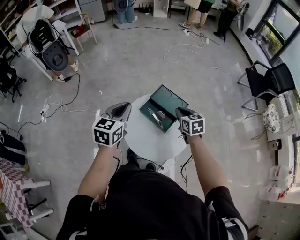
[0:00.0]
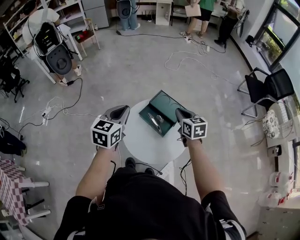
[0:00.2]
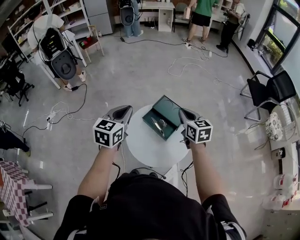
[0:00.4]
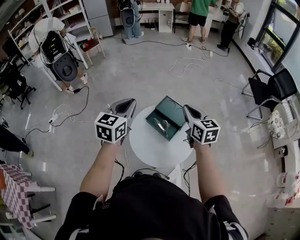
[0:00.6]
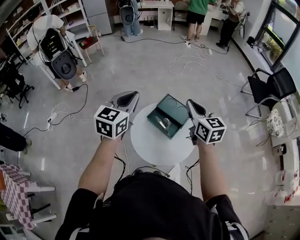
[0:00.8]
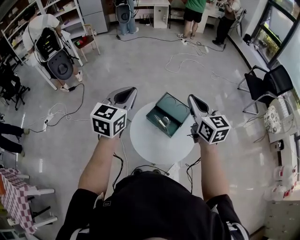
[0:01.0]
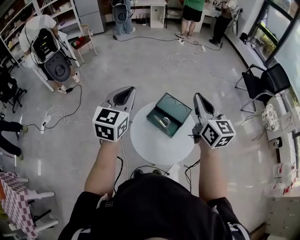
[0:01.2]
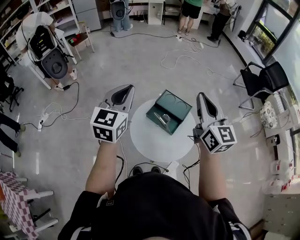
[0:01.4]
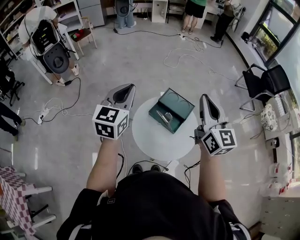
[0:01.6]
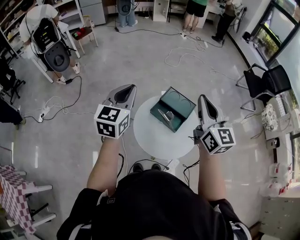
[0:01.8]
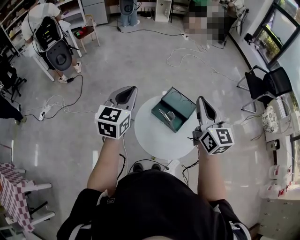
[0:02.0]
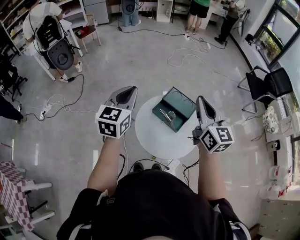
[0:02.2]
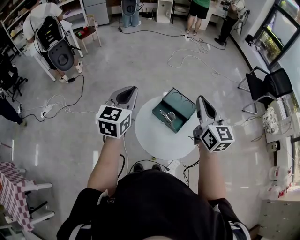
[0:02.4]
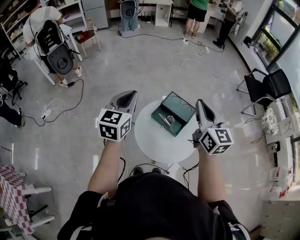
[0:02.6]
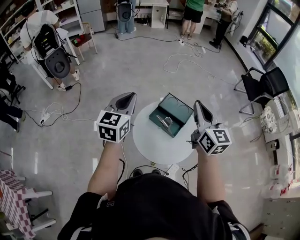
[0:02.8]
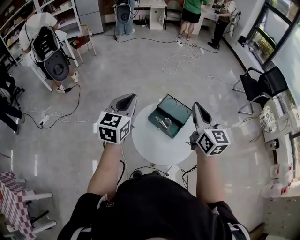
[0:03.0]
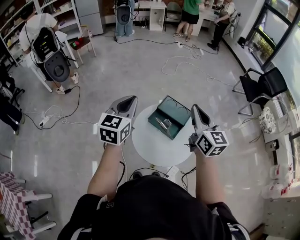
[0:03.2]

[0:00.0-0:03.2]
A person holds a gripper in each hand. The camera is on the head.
0:00.0 to 0:01.6: The left gripper travels upward by about 10 cm. Meanwhile the right gripper travels upward by roughly 30 cm, and tips its fingers upward by some 40 degrees.
0:01.6 to 0:03.2: The right gripper shifts about 5 cm downward.

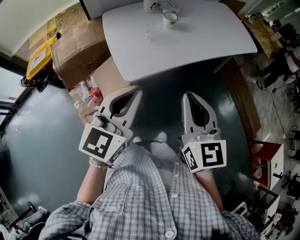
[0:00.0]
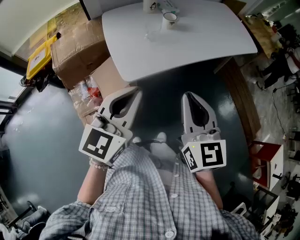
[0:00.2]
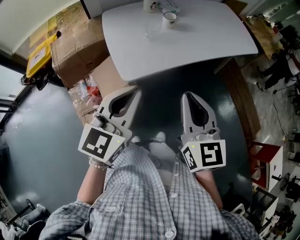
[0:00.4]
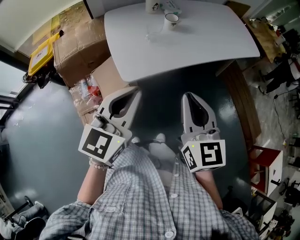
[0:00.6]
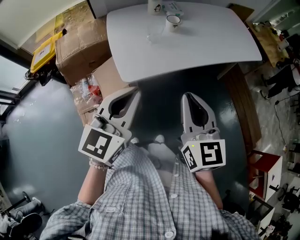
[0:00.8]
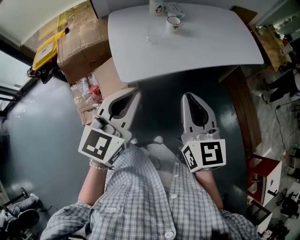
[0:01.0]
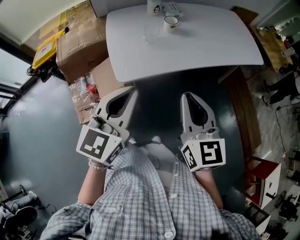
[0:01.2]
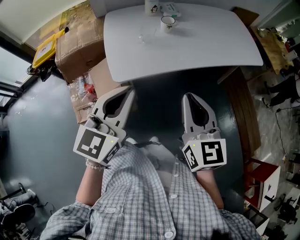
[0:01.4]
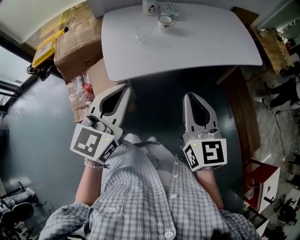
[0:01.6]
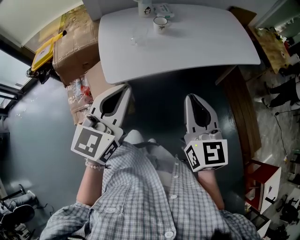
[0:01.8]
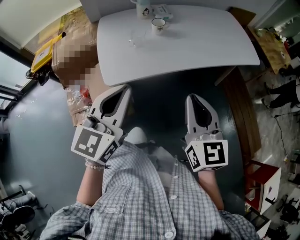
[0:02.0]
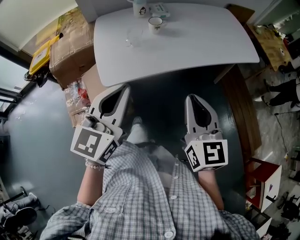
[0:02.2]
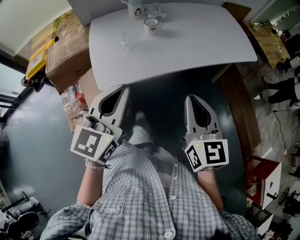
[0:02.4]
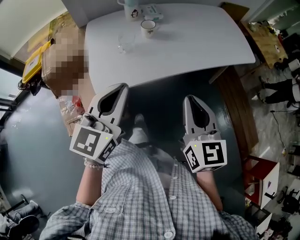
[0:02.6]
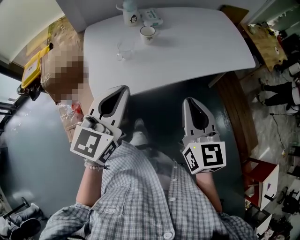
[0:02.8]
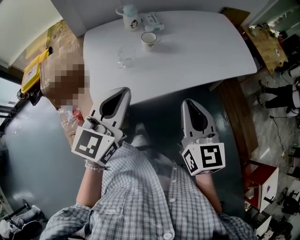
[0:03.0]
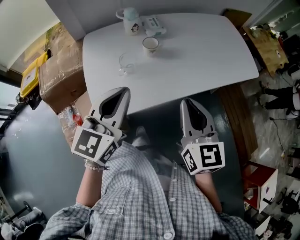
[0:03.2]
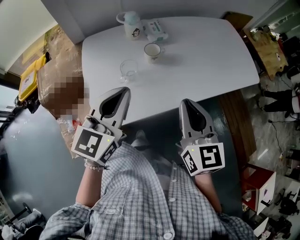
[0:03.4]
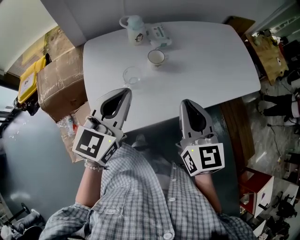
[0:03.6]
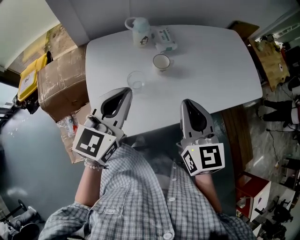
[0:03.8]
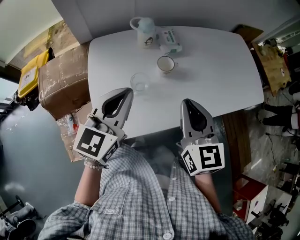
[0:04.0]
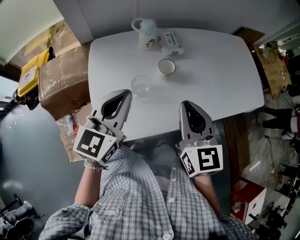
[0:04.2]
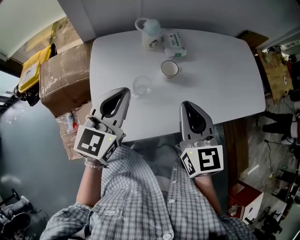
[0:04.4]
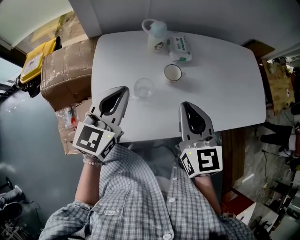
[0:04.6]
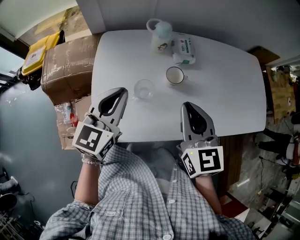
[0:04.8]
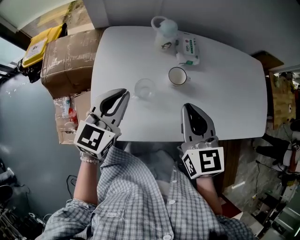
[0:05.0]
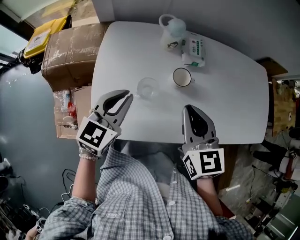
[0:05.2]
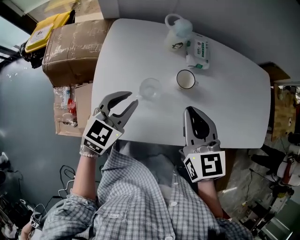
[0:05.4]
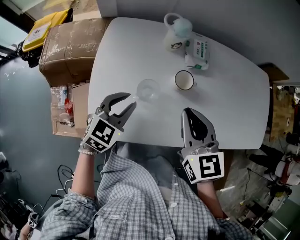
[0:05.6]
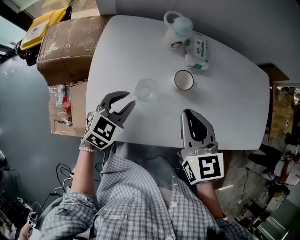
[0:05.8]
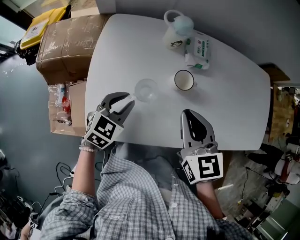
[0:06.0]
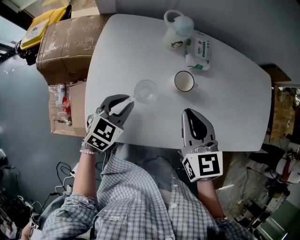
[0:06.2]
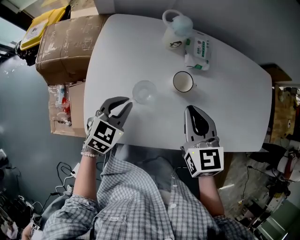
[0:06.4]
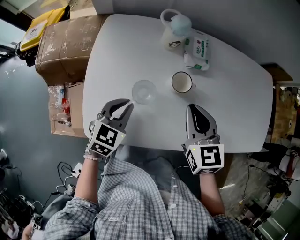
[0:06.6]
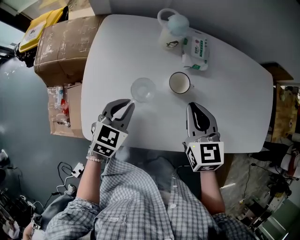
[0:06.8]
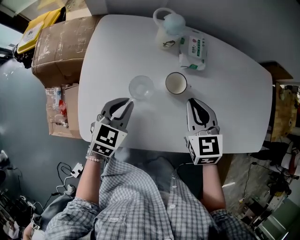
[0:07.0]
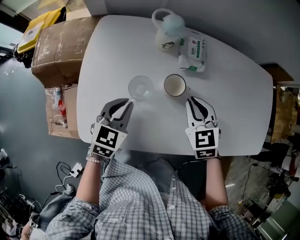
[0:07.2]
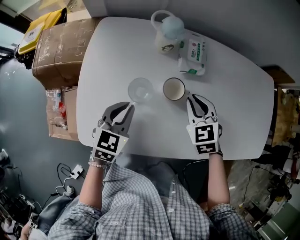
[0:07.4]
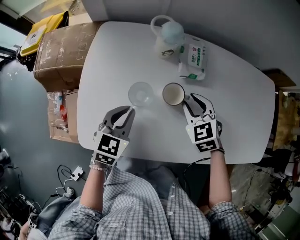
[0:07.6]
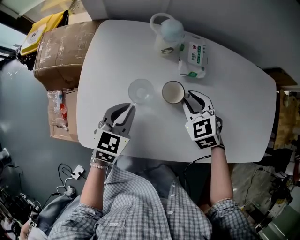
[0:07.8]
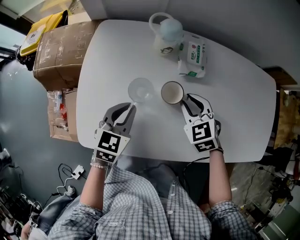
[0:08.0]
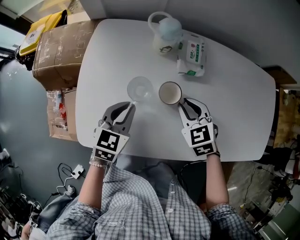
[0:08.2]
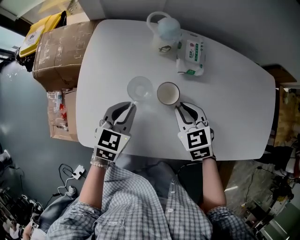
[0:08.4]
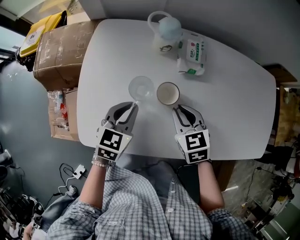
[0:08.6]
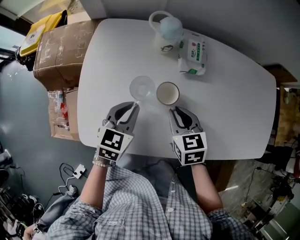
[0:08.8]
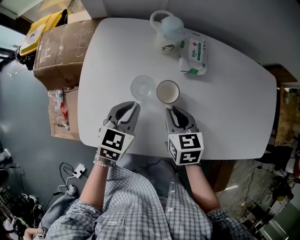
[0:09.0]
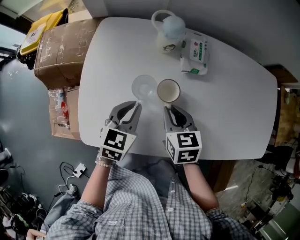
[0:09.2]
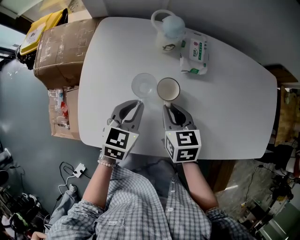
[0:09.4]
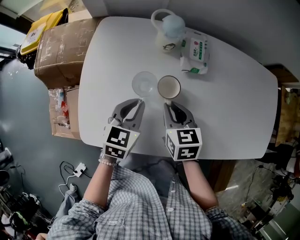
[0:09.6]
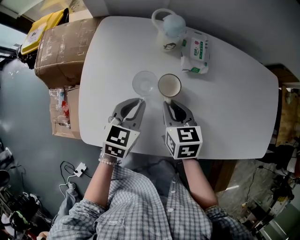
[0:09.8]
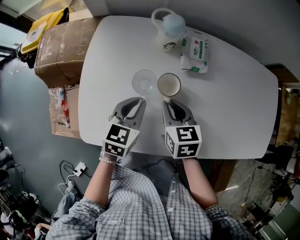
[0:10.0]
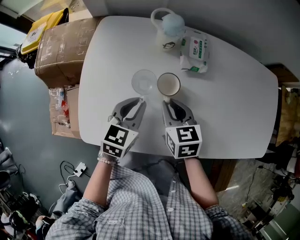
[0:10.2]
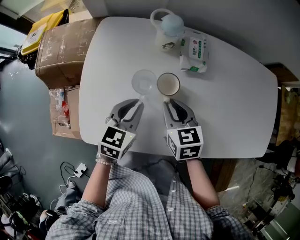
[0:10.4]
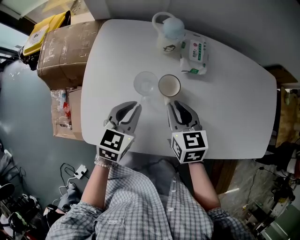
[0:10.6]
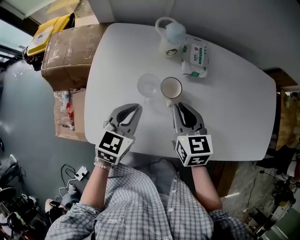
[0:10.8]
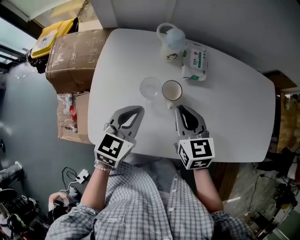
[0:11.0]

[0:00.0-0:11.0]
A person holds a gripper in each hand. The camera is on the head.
0:00.0 to 0:01.6: Both grippers move to the right, some 10 cm.
0:01.6 to 0:03.2: The two grippers go roughly 15 cm forward.
0:03.2 to 0:04.8: The right gripper shifts about 20 cm forward and to the left; the left gripper moves forward, to the left and downward, approximately 15 cm.
0:04.8 to 0:06.2: The right gripper moves downward, about 5 cm; the left gripper is displaced downward by some 15 cm, and turns by some 30 degrees.
0:06.2 to 0:07.8: The left gripper ends up some 5 cm from where it was. Meanwhile the right gripper heads downward, forward and to the right, covering some 15 cm, and turns by about 30 degrees.
0:07.8 to 0:09.4: The right gripper heads backward and to the left, covering approximately 10 cm, and changes its angle by some 40 degrees.
0:09.4 to 0:11.0: The two grippers go some 10 cm upward.

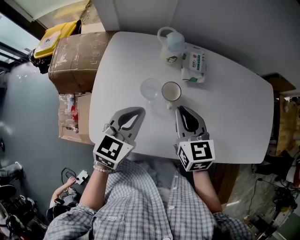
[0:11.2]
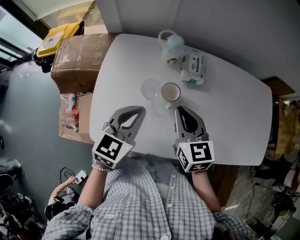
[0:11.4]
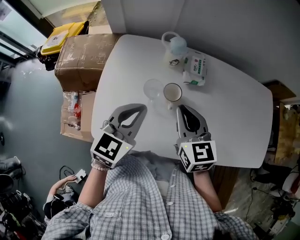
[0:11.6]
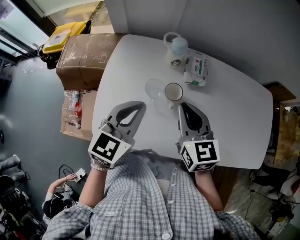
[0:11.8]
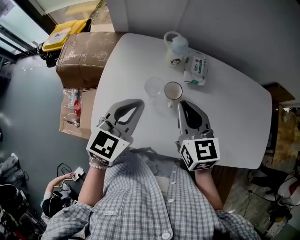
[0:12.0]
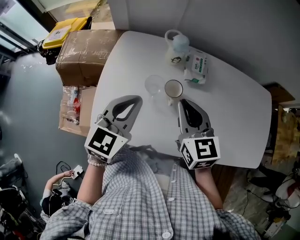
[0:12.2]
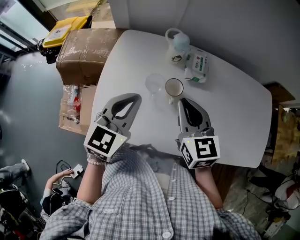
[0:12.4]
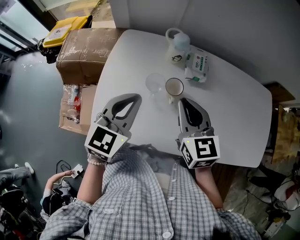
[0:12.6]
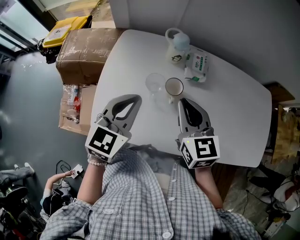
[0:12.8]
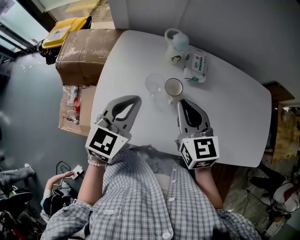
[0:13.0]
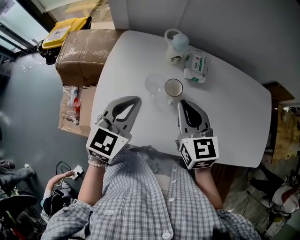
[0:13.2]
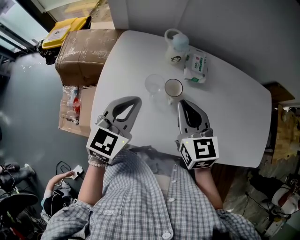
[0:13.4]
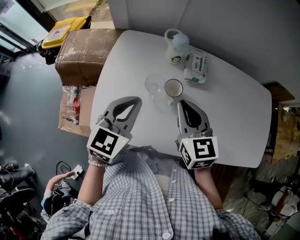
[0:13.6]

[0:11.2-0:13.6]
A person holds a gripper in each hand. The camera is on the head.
0:11.2 to 0:12.4: The two grippers go about 5 cm upward.
0:12.4 to 0:13.6: Neither gripper changes place.

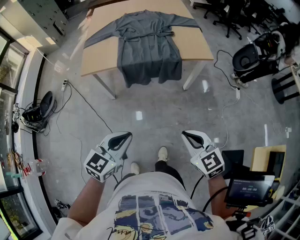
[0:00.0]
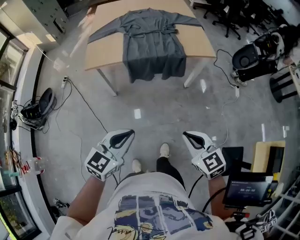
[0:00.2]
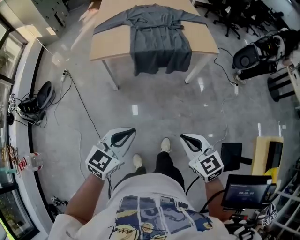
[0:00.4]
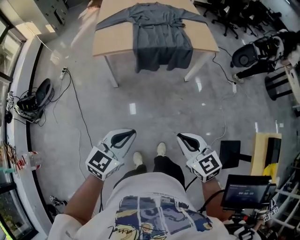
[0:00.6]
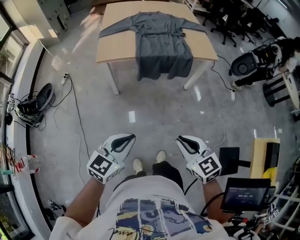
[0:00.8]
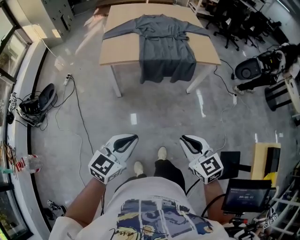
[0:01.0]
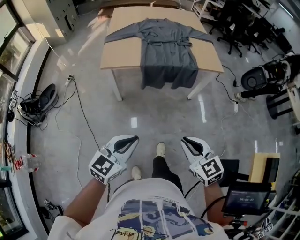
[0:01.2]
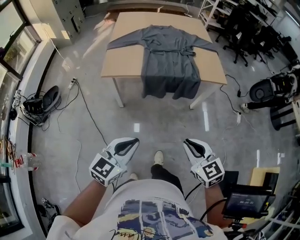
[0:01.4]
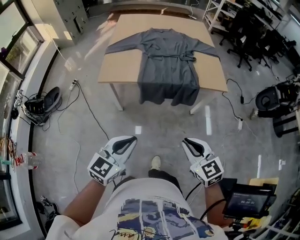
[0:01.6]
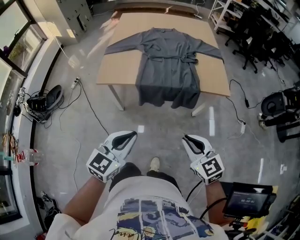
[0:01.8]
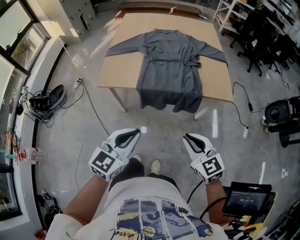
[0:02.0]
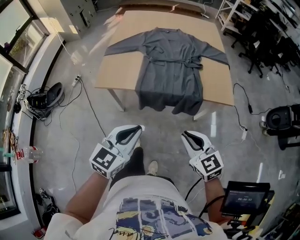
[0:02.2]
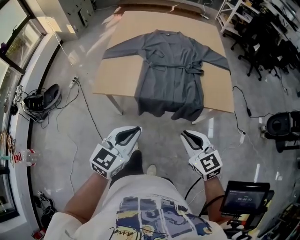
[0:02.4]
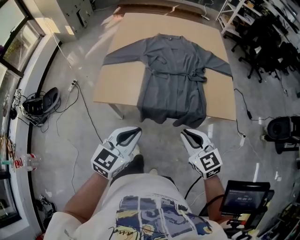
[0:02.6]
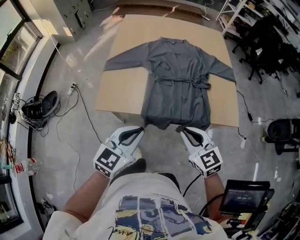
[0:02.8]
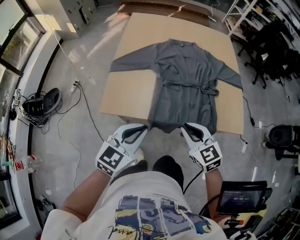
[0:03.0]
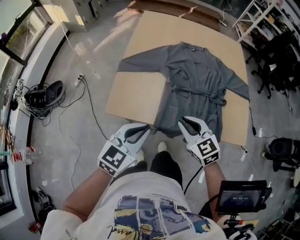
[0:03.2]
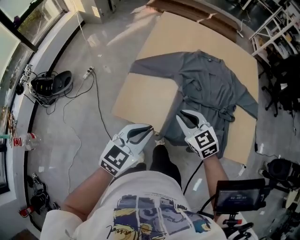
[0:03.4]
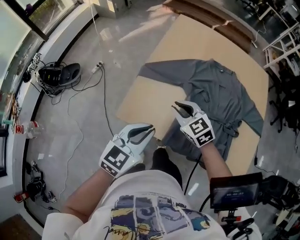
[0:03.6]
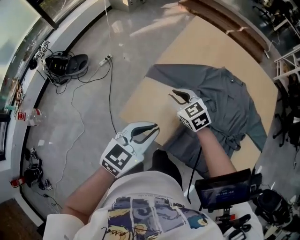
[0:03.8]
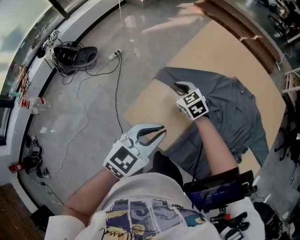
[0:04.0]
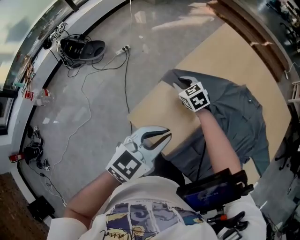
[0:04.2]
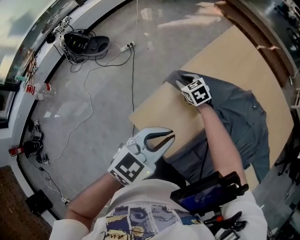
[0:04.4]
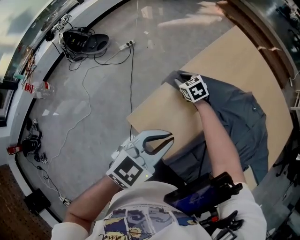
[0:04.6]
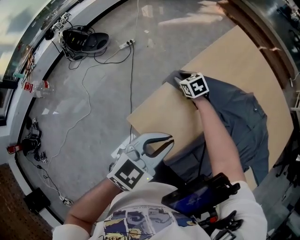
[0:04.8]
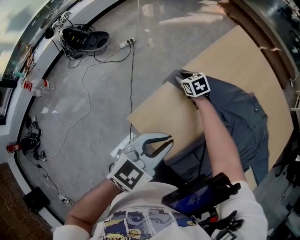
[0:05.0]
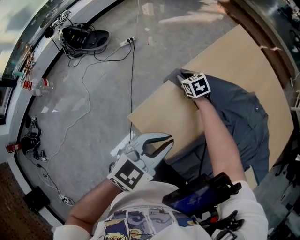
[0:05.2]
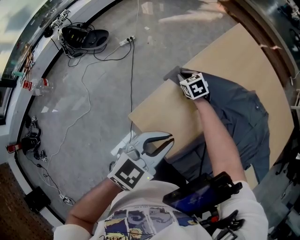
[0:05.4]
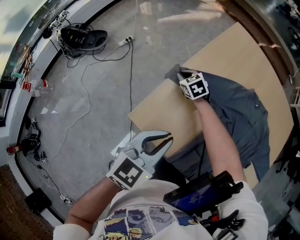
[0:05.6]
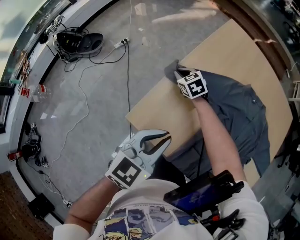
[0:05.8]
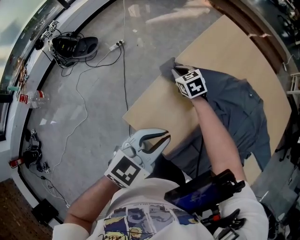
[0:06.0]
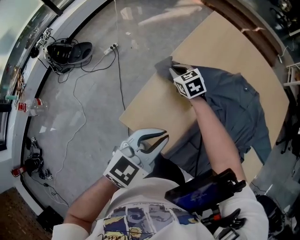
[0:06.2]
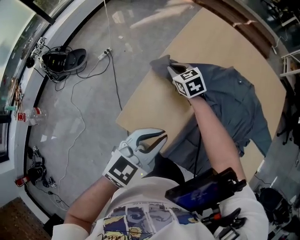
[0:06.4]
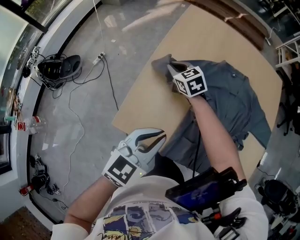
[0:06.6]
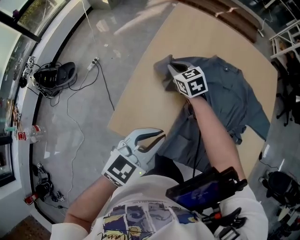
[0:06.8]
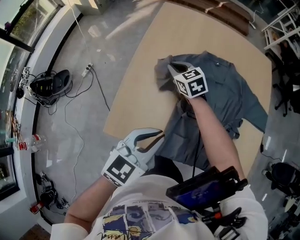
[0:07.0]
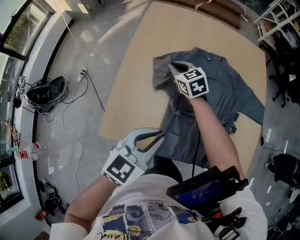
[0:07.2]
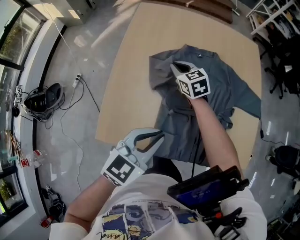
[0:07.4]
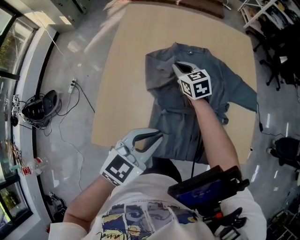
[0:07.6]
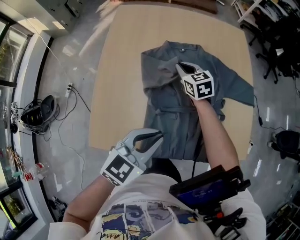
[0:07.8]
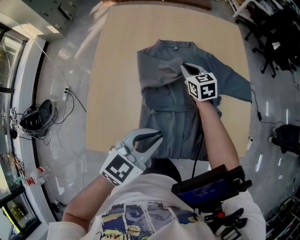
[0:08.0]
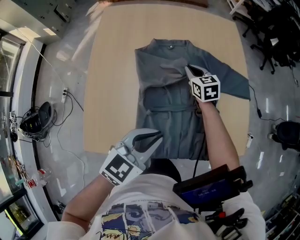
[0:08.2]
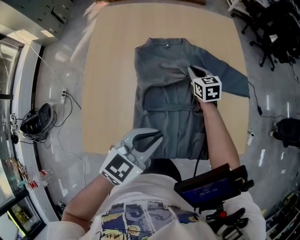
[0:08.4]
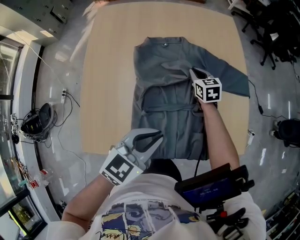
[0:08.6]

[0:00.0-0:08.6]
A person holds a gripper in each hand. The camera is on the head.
0:00.0 to 0:01.4: Both grippers move to the left, roughly 10 cm.
0:01.4 to 0:02.8: The two grippers go approximately 35 cm forward.
0:02.8 to 0:04.4: The right gripper ends up approximately 60 cm from where it was, and turns by roughly 50 degrees, while the left gripper moves about 25 cm, and changes its angle by approximately 30 degrees.
0:04.4 to 0:05.8: The grippers stay close to where they were, moving slightly.
0:05.8 to 0:07.2: The left gripper changes place by approximately 10 cm, and rotates about 30 degrees. The right gripper changes place by some 25 cm, and changes its angle by roughly 30 degrees.
0:07.2 to 0:08.6: The right gripper shifts some 30 cm to the right, and rotates about 30 degrees, while the left gripper goes approximately 15 cm to the right.
